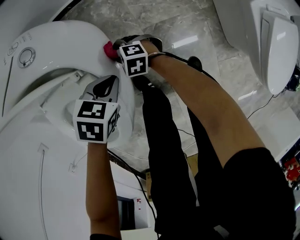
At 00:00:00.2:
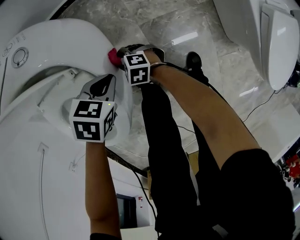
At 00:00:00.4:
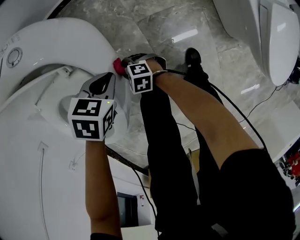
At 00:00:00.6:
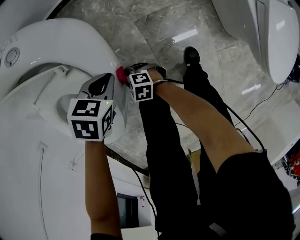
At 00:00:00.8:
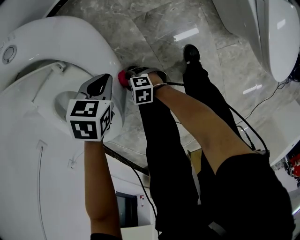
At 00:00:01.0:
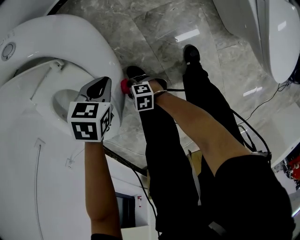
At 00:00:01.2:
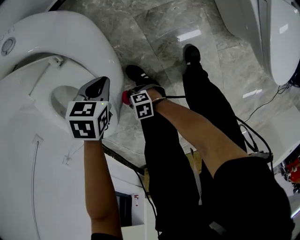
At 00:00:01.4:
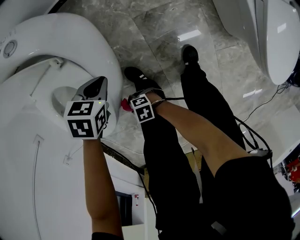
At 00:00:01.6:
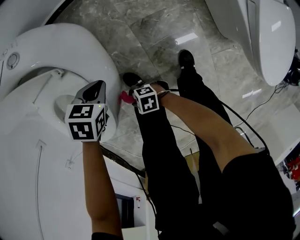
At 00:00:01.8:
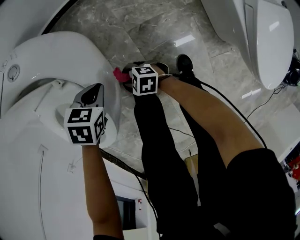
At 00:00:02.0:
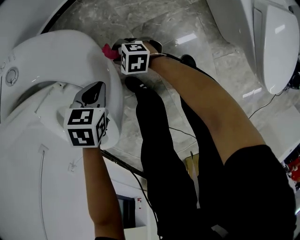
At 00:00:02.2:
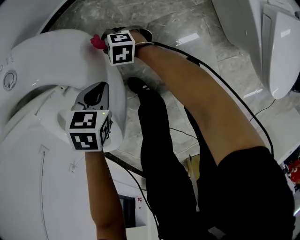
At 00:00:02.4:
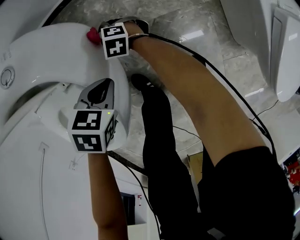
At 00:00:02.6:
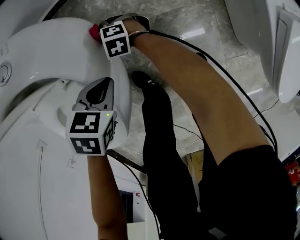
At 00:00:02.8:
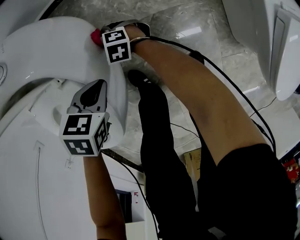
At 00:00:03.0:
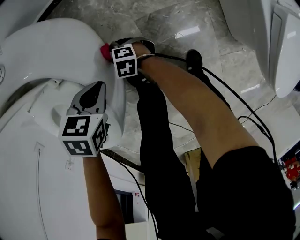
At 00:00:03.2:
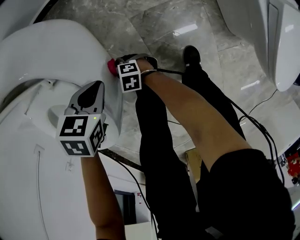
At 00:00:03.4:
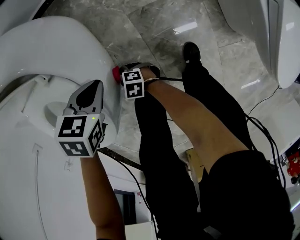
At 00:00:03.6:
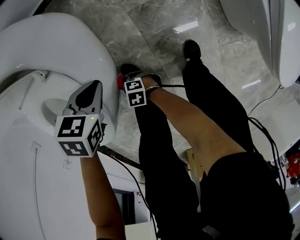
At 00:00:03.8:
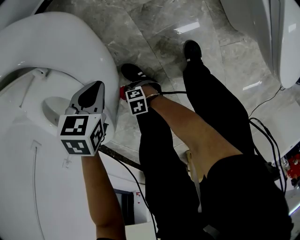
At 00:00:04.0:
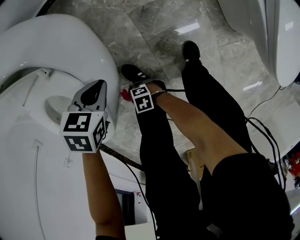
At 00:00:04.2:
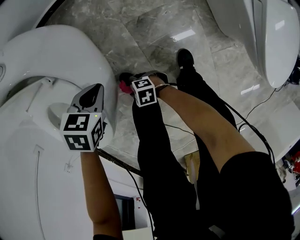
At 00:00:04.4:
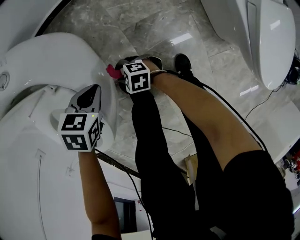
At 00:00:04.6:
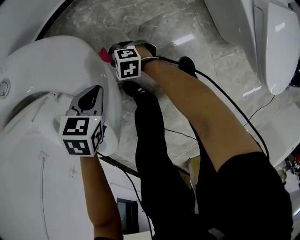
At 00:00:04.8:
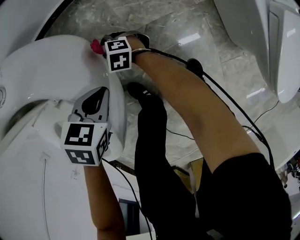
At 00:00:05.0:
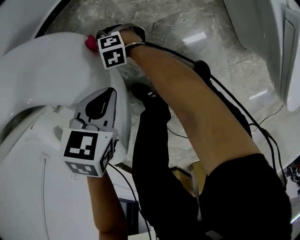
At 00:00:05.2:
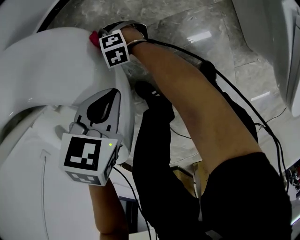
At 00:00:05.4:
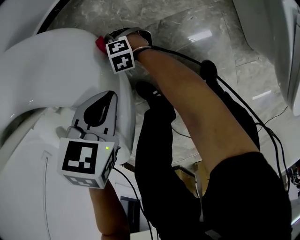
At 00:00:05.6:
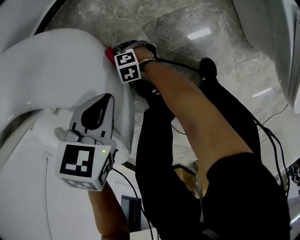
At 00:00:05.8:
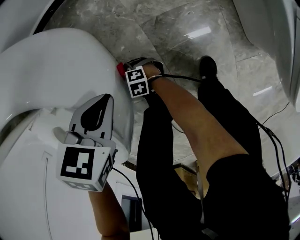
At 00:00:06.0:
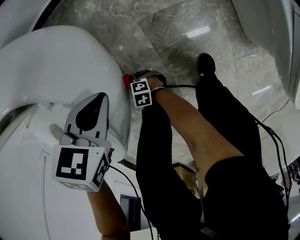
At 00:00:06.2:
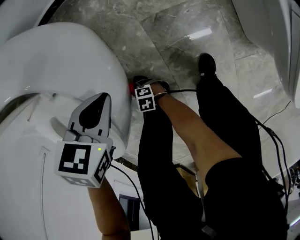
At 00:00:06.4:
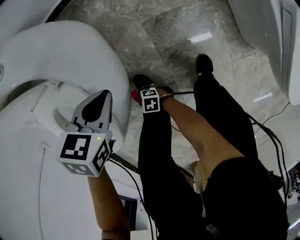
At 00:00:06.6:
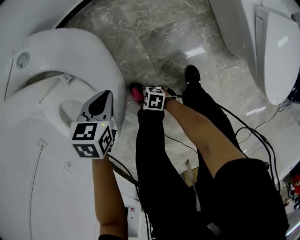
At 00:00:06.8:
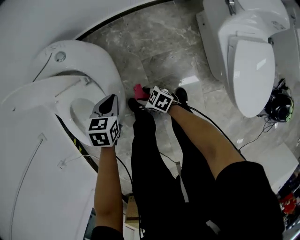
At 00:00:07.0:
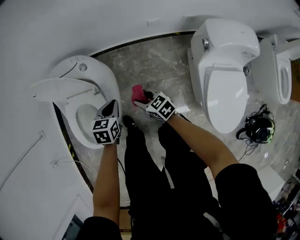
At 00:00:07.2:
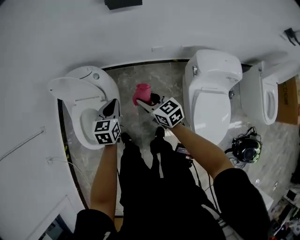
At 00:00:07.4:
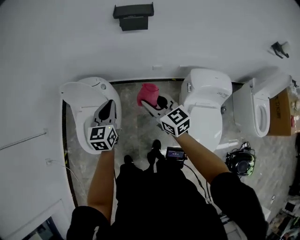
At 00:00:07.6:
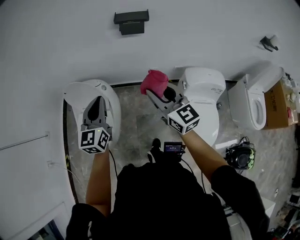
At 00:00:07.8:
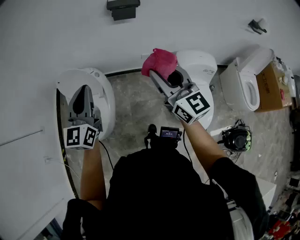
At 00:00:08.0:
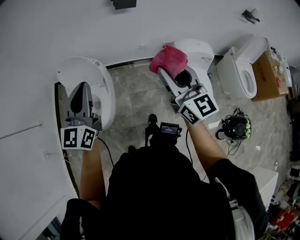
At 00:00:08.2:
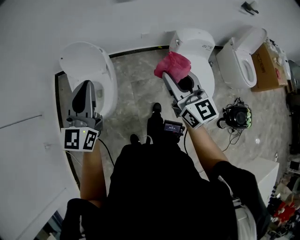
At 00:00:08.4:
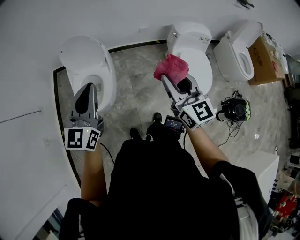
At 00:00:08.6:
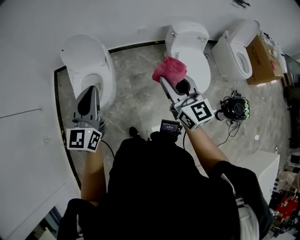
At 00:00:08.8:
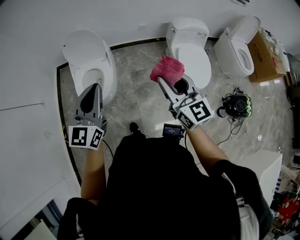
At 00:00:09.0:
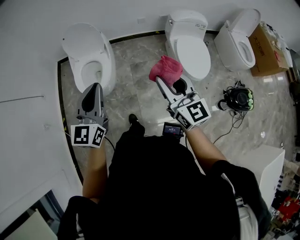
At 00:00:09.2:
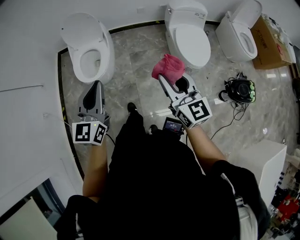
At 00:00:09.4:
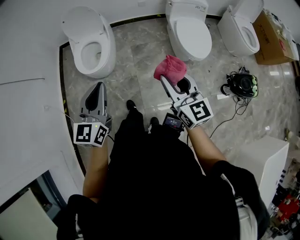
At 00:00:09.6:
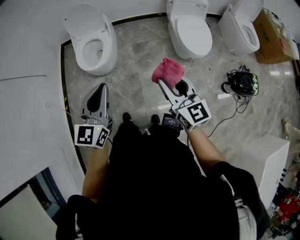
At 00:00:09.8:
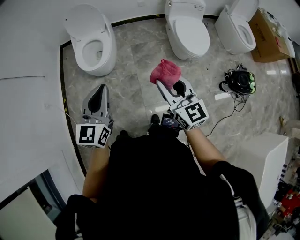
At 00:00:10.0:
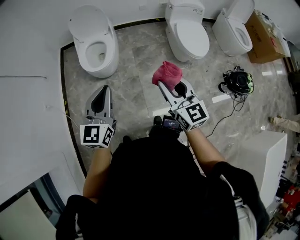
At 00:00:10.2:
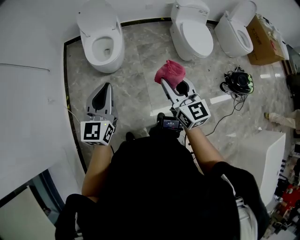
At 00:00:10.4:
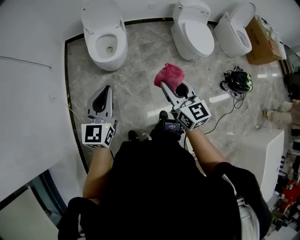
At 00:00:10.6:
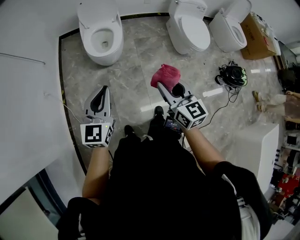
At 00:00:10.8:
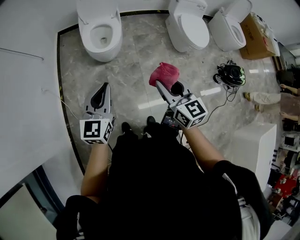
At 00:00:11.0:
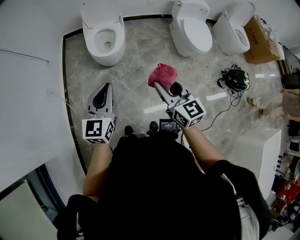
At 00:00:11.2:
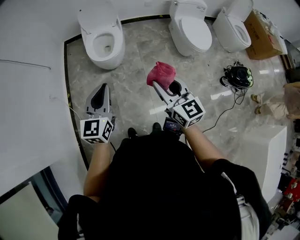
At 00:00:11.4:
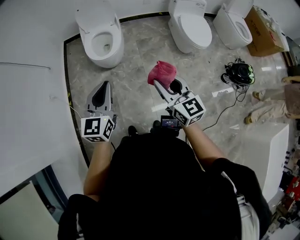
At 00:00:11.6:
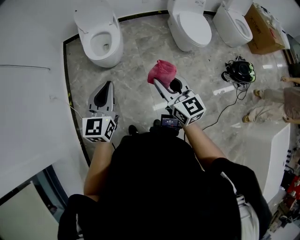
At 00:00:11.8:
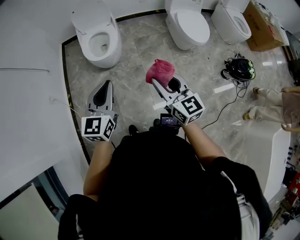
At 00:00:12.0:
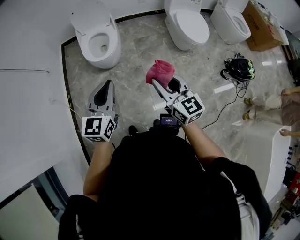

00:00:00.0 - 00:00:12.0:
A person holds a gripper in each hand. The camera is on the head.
00:00:00.0 - 00:00:01.6: The left gripper changes place by some 5 cm, while the right gripper changes place by roughly 30 cm, and swivels some 30 degrees.
00:00:01.6 - 00:00:03.0: The right gripper shifts by approximately 25 cm, and changes its angle by about 20 degrees.
00:00:04.4 - 00:00:06.0: The right gripper moves downward, some 15 cm.
00:00:06.0 - 00:00:07.6: Both grippers travel together upward, approximately 80 cm. The right gripper points its fingers some 40 degrees further upward. The left gripper points its fingers roughly 60 degrees further upward.
00:00:07.6 - 00:00:09.0: Both grippers are carried backward, about 40 cm.
00:00:09.0 - 00:00:10.4: The two grippers go some 30 cm backward and to the left.
00:00:10.4 - 00:00:12.0: The left gripper goes some 10 cm to the right.

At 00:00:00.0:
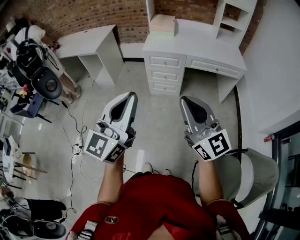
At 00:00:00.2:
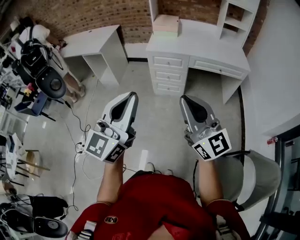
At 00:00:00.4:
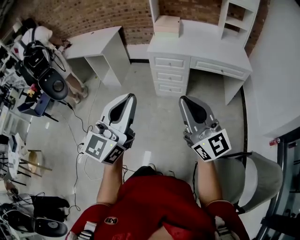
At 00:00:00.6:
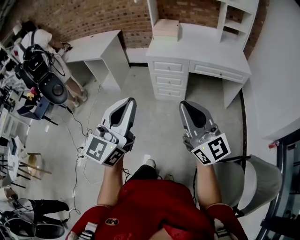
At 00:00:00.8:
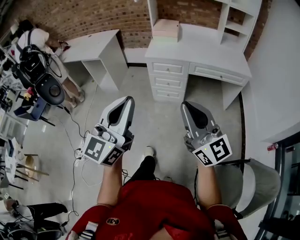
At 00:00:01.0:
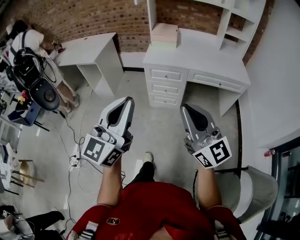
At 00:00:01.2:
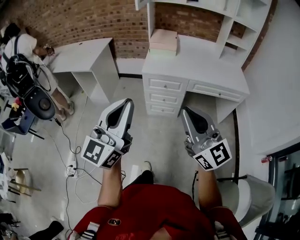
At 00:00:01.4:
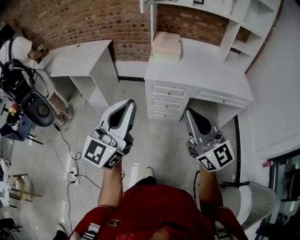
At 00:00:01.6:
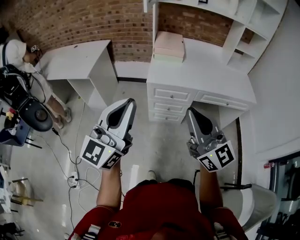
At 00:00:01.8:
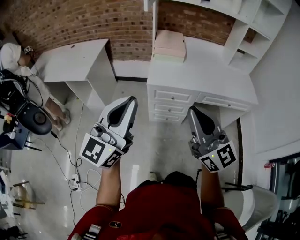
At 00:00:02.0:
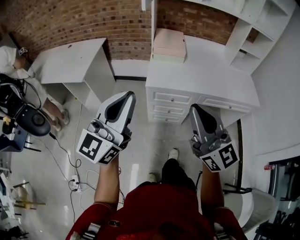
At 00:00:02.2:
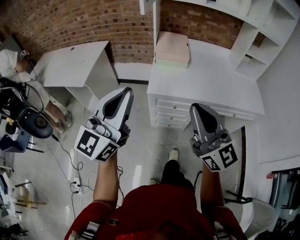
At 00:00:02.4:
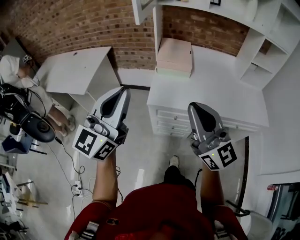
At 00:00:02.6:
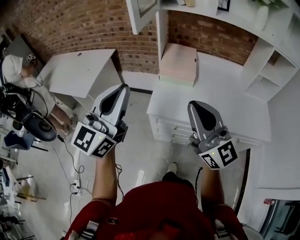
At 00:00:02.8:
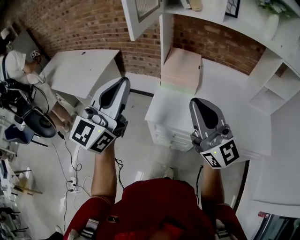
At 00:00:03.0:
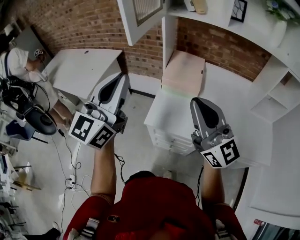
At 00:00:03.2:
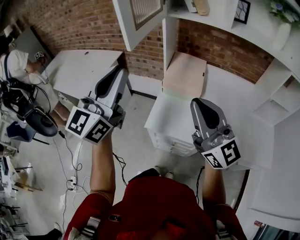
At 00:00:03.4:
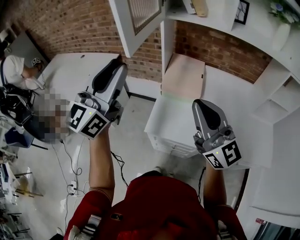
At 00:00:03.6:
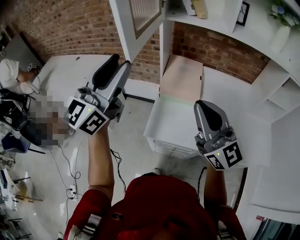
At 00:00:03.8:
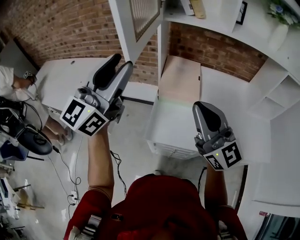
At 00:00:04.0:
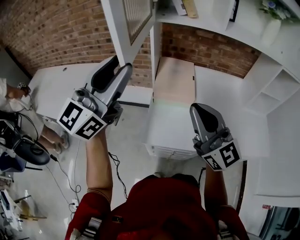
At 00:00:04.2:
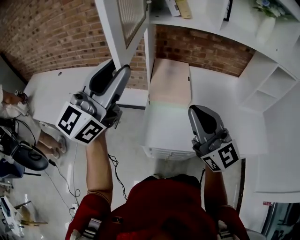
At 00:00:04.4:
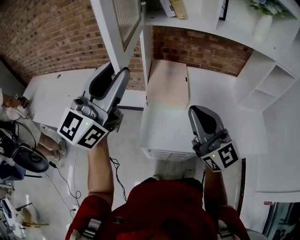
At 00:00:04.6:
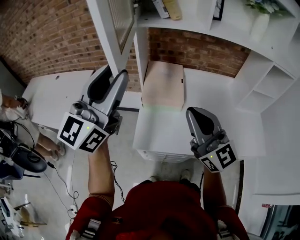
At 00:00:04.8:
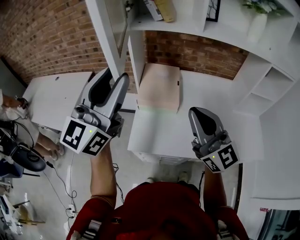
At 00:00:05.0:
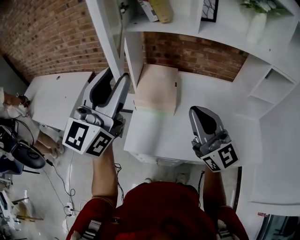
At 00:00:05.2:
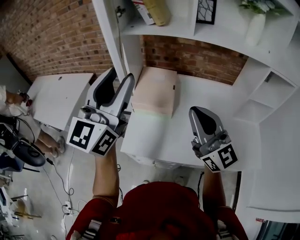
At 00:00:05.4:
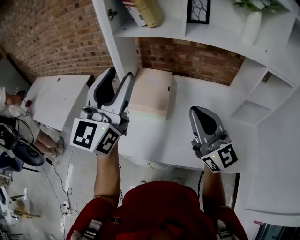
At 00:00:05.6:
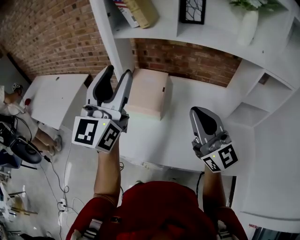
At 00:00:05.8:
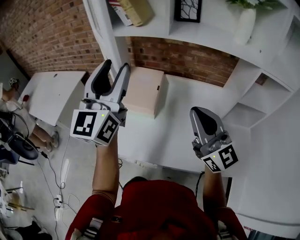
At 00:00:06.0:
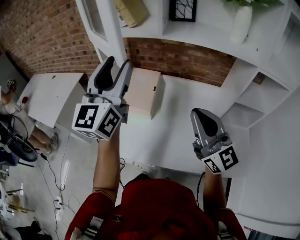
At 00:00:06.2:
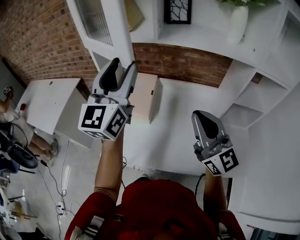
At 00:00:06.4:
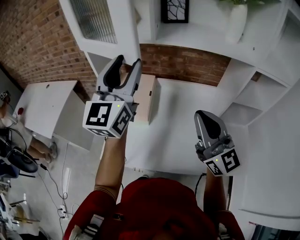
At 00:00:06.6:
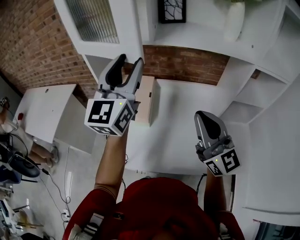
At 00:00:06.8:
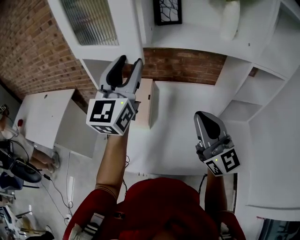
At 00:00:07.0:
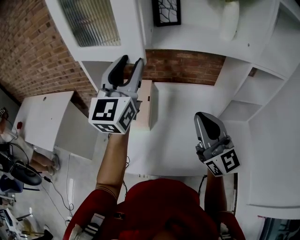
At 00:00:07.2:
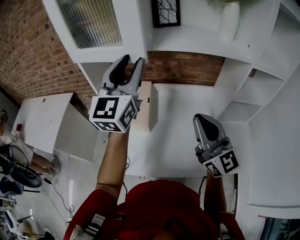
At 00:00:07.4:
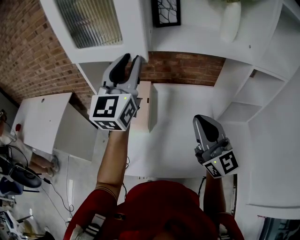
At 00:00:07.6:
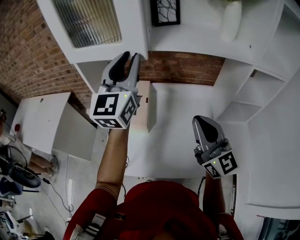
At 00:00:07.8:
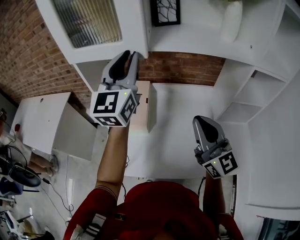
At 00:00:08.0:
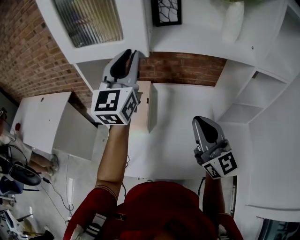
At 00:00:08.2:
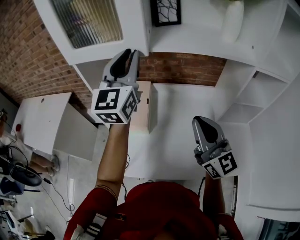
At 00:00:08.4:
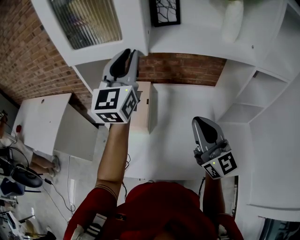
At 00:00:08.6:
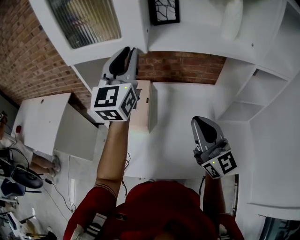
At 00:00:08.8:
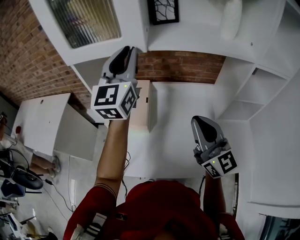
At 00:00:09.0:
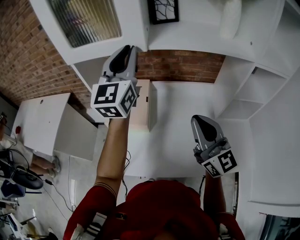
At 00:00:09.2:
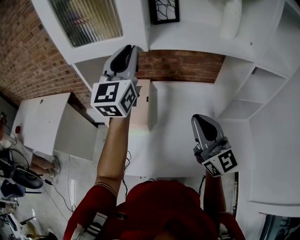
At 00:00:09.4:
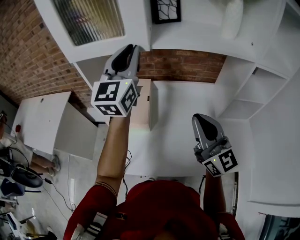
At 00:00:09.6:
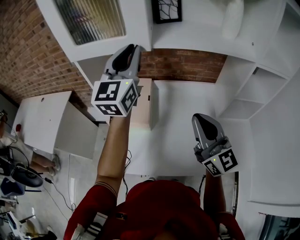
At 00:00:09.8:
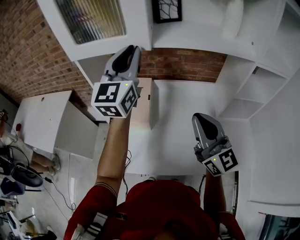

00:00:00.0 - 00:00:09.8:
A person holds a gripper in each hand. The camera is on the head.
00:00:00.0 - 00:00:01.4: The grippers both shift forward by about 25 cm.
00:00:01.4 - 00:00:02.8: The two grippers travel together, forward, roughly 40 cm.
00:00:02.8 - 00:00:04.2: Both grippers travel together forward, approximately 15 cm. The left gripper opens.
00:00:04.2 - 00:00:05.6: Both grippers travel together to the right, roughly 20 cm. The left gripper rotates some 20 degrees.
00:00:05.6 - 00:00:07.0: The left gripper goes roughly 15 cm to the right and forward. The right gripper travels to the right by roughly 5 cm.
00:00:07.0 - 00:00:08.4: The left gripper goes approximately 5 cm forward, and closes up.
00:00:08.4 - 00:00:09.8: The grippers stay close to where they were, moving slightly.

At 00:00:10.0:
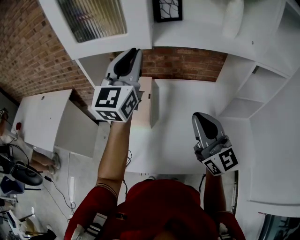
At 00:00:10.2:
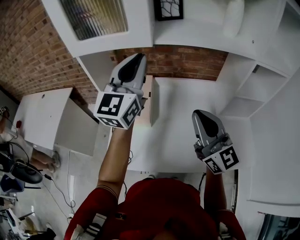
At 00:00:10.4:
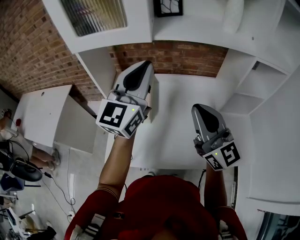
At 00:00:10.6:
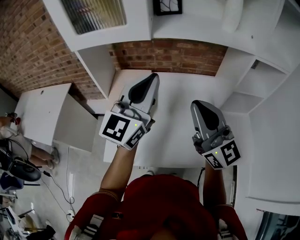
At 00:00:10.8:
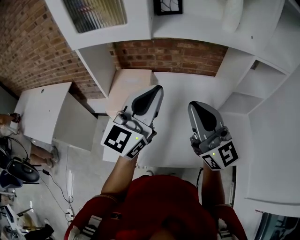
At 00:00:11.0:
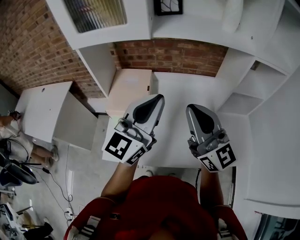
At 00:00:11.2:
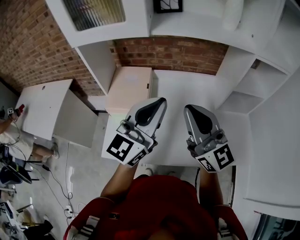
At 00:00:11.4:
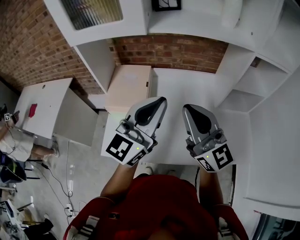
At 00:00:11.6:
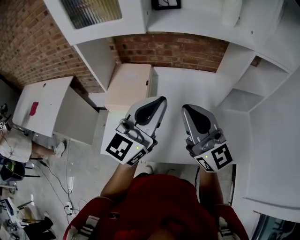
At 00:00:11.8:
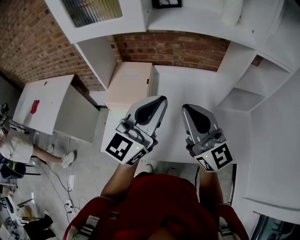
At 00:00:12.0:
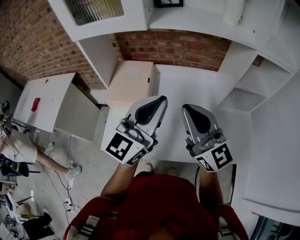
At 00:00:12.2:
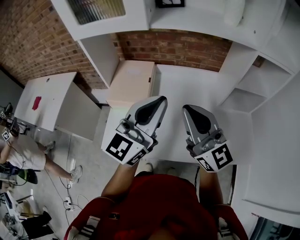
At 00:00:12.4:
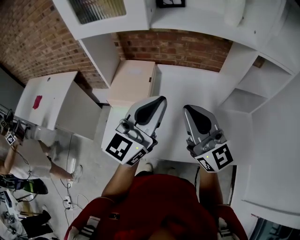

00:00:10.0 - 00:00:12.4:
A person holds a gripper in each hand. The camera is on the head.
00:00:10.0 - 00:00:11.2: The left gripper travels backward, downward and to the right by roughly 20 cm, and rotates roughly 20 degrees.
00:00:11.2 - 00:00:12.4: There are only small adjustments of the grippers.
